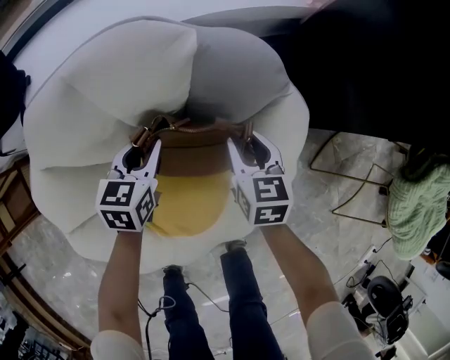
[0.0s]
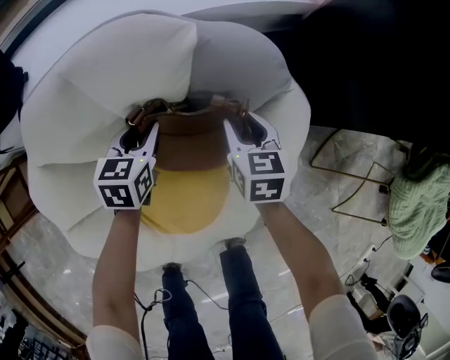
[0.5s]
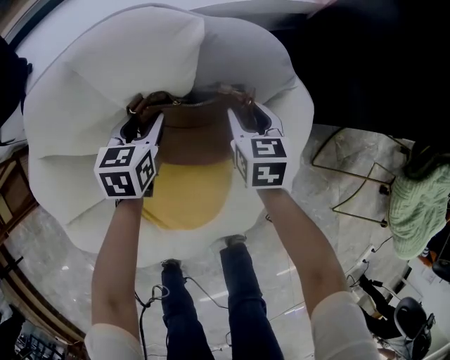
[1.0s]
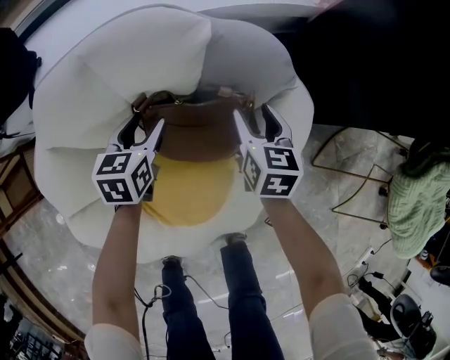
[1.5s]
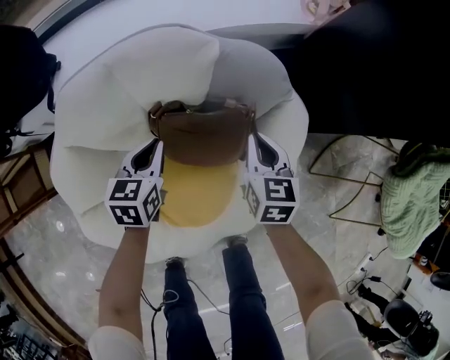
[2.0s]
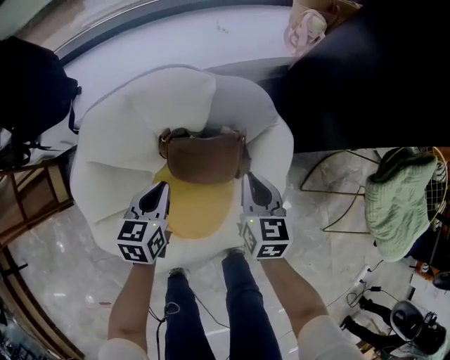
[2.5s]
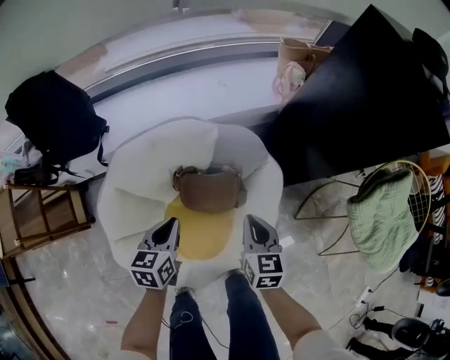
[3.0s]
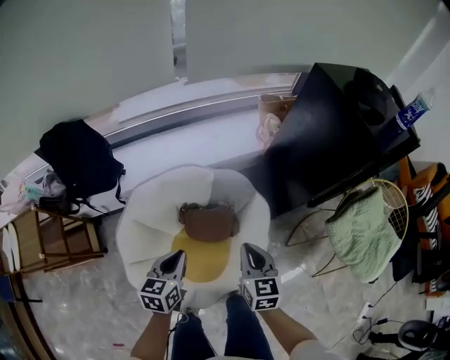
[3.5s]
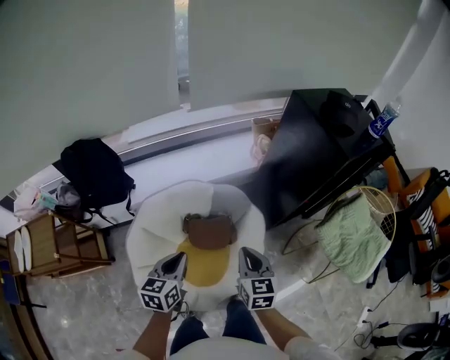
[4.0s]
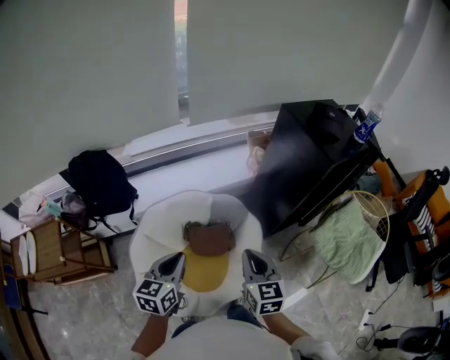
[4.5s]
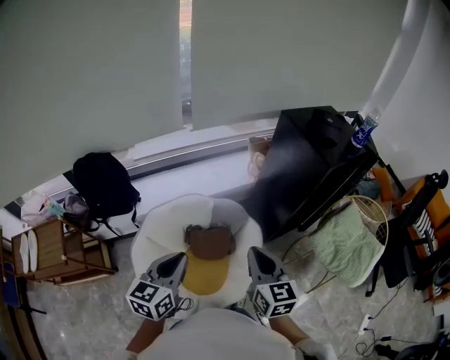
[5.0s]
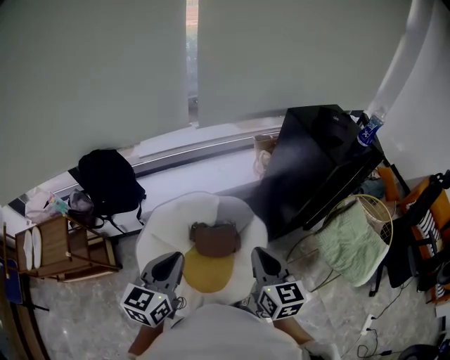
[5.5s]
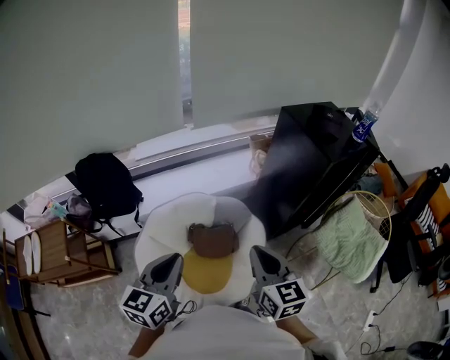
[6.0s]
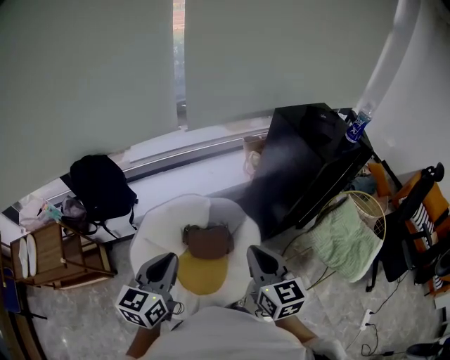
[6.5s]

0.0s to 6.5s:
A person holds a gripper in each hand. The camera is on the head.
0.0s to 2.0s: The right gripper moves upward, some 5 cm, and closes. The left gripper moves about 5 cm, and opens, then closes once more.
2.0s to 4.5s: The right gripper heads upward and backward, covering roughly 50 cm. The left gripper moves upward, some 50 cm.
4.5s to 6.5s: Both grippers travel together upward, about 10 cm.

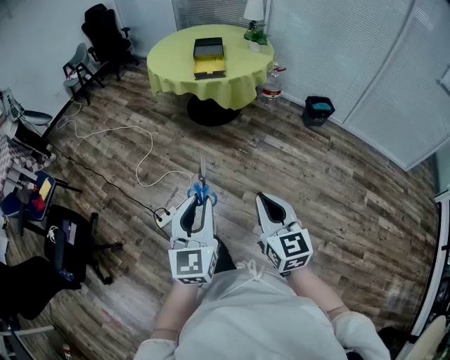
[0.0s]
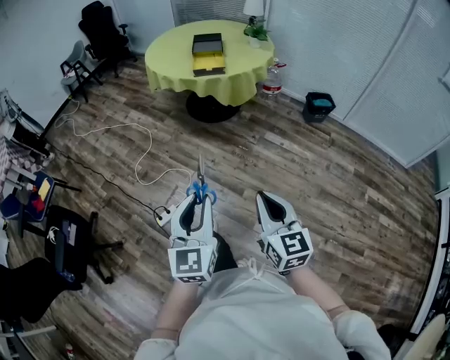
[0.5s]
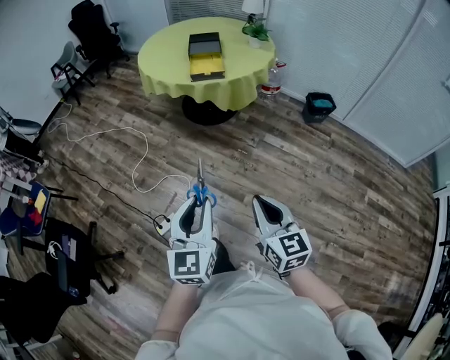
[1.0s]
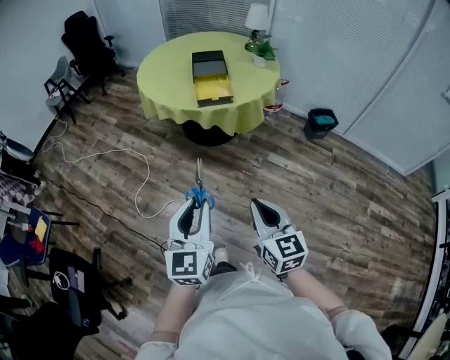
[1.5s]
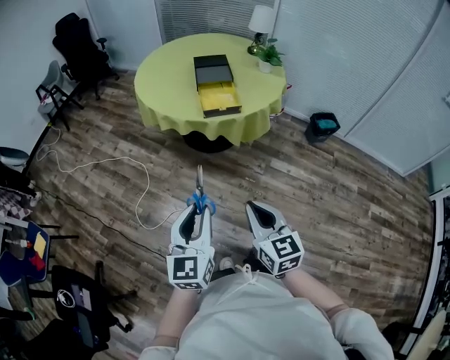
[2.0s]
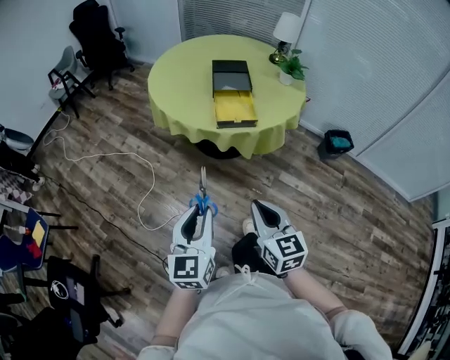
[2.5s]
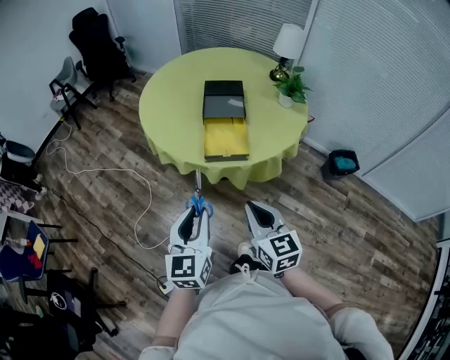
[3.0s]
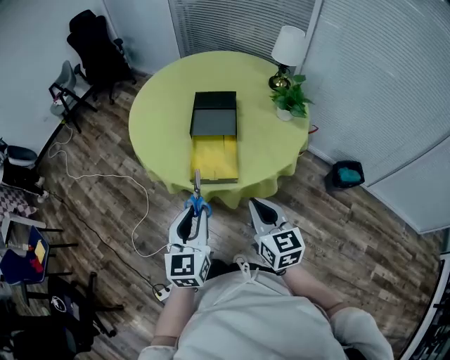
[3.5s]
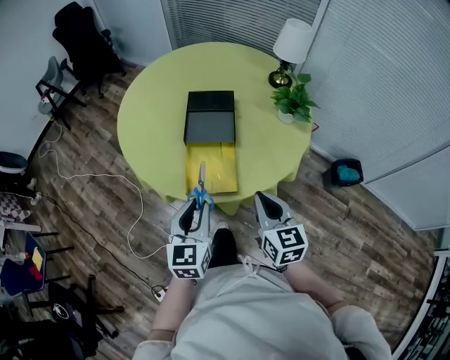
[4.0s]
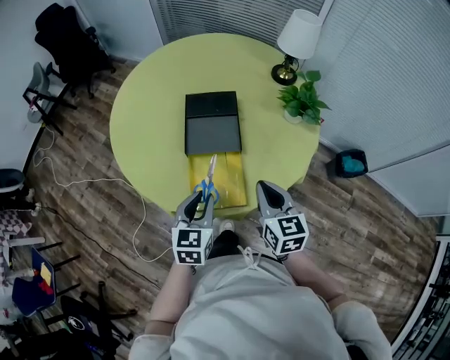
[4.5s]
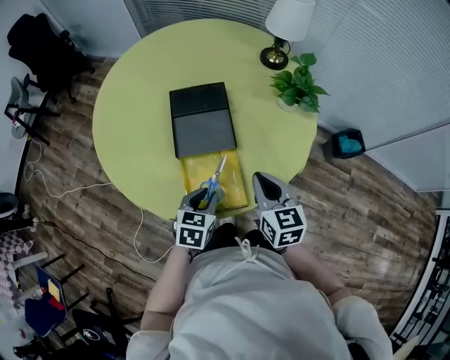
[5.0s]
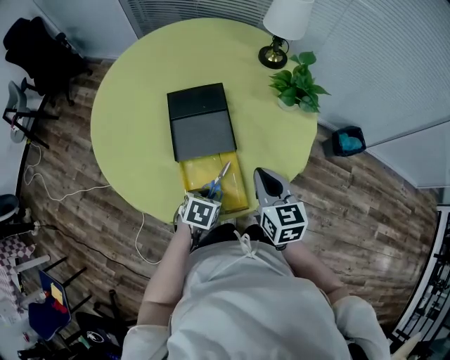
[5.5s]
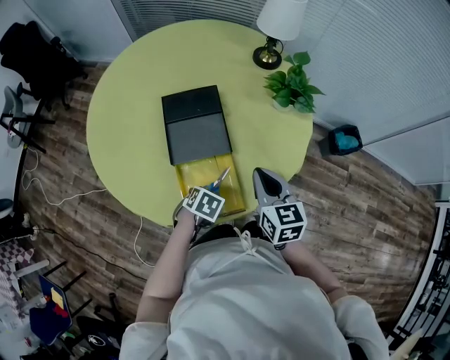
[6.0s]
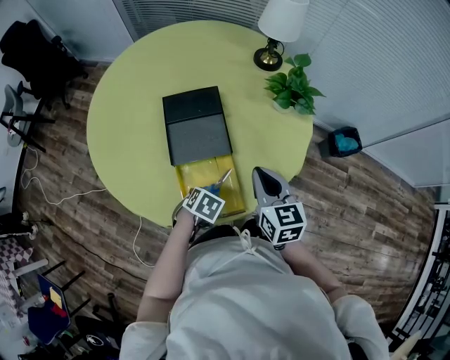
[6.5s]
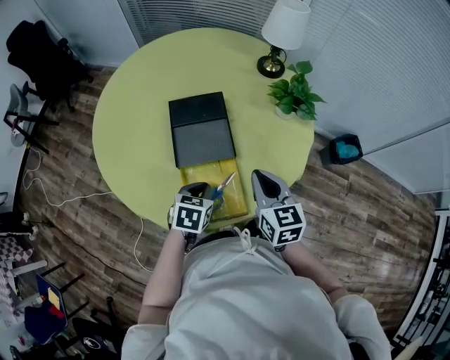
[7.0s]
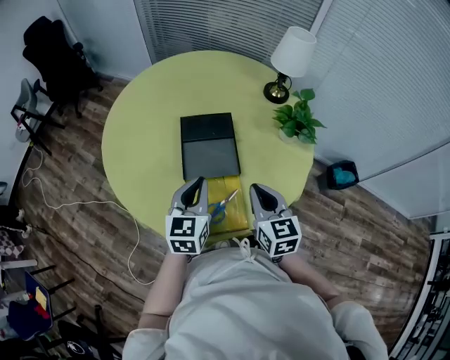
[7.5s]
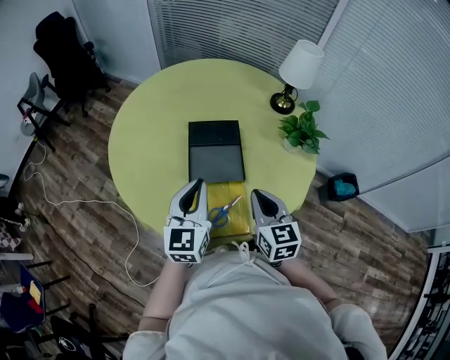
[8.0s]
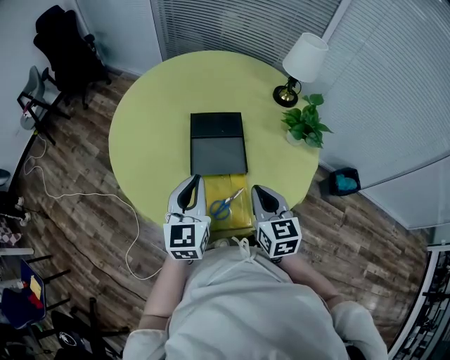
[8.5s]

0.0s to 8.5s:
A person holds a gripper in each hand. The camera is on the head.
0.0s to 2.0s: The right gripper is displaced forward and to the left by roughly 40 cm, while the left gripper shifts some 35 cm forward.
2.0s to 4.0s: The two grippers travel together, forward and to the right, about 50 cm.
4.0s to 6.5s: The left gripper is displaced downward by roughly 25 cm, and tips its fingers downward by approximately 60 degrees, while the right gripper ends up approximately 20 cm from where it was.
6.5s to 8.5s: The left gripper goes some 25 cm upward, and angles its fingers upward, by approximately 70 degrees, while the right gripper moves about 5 cm.

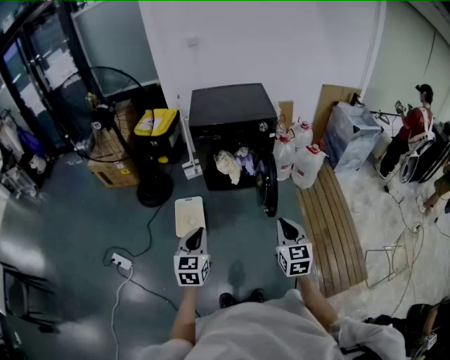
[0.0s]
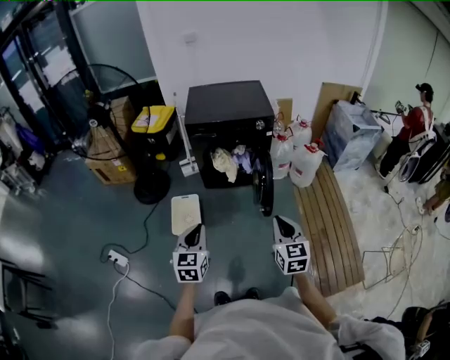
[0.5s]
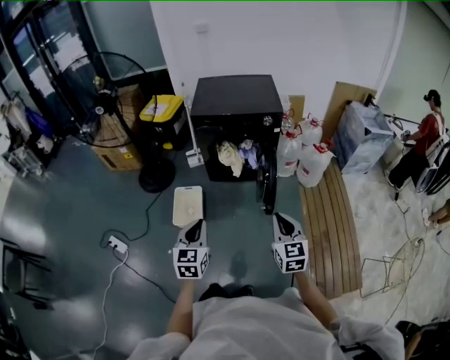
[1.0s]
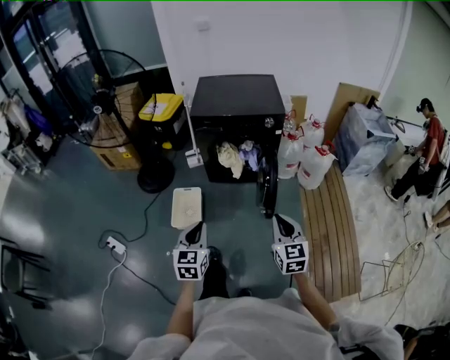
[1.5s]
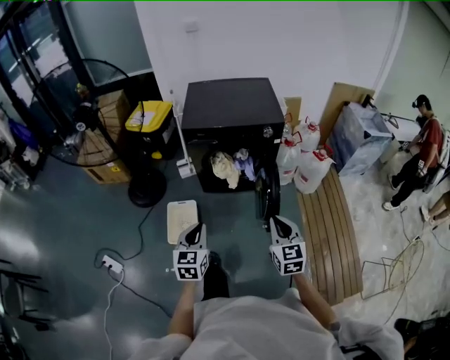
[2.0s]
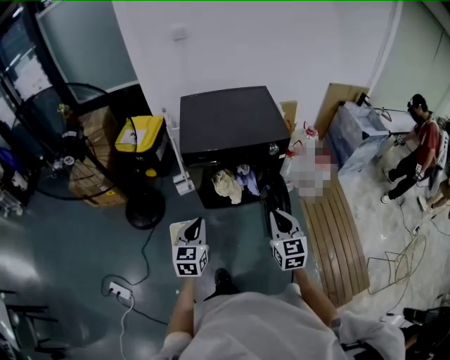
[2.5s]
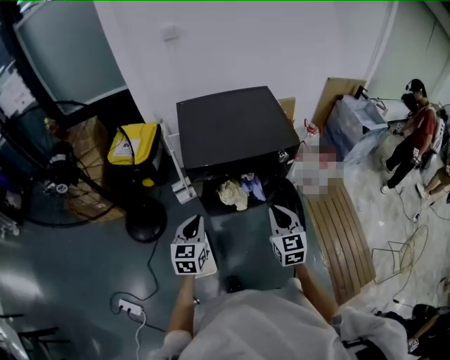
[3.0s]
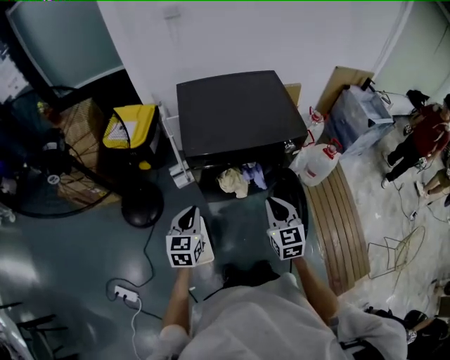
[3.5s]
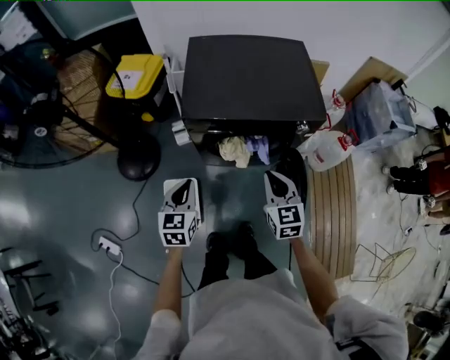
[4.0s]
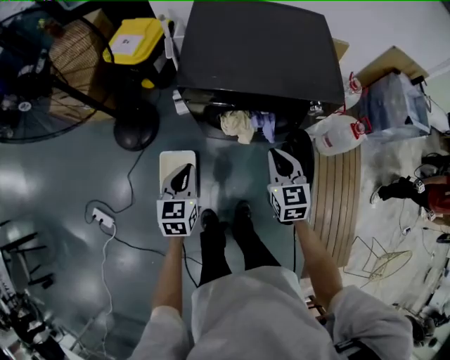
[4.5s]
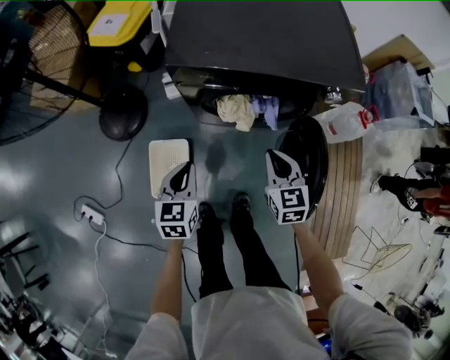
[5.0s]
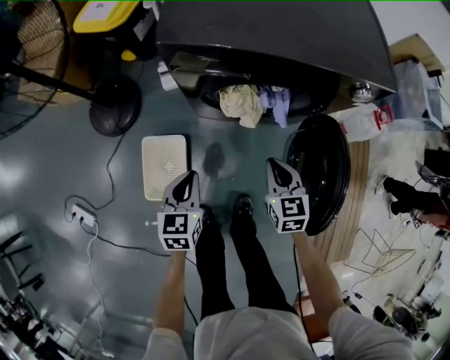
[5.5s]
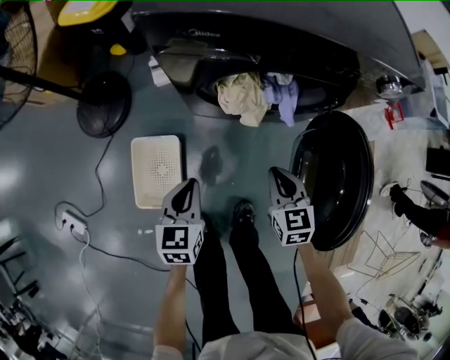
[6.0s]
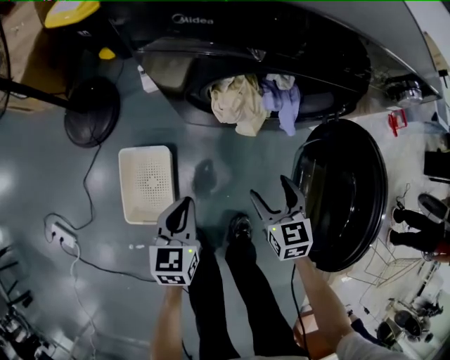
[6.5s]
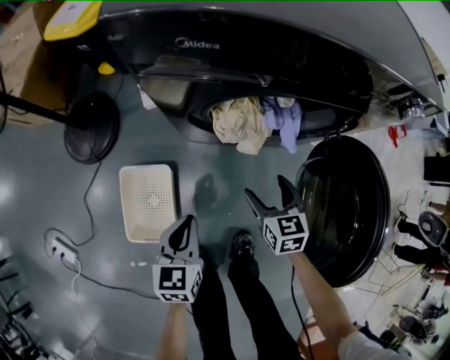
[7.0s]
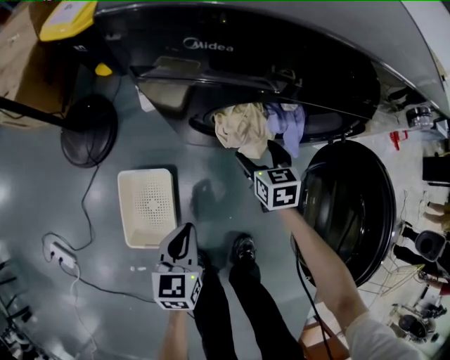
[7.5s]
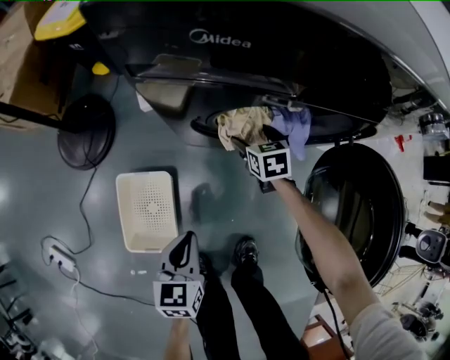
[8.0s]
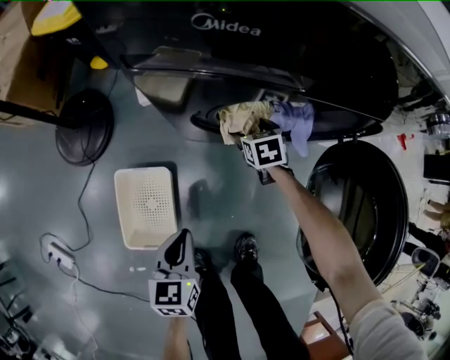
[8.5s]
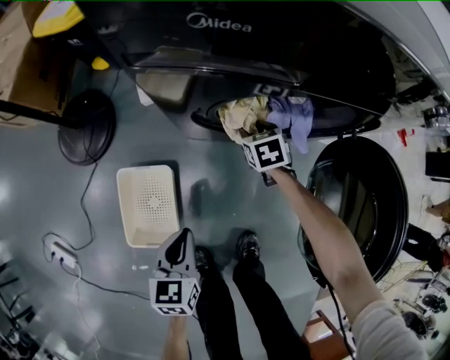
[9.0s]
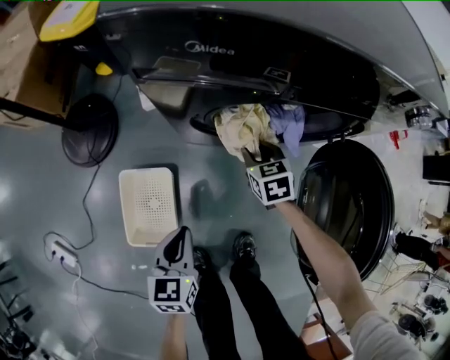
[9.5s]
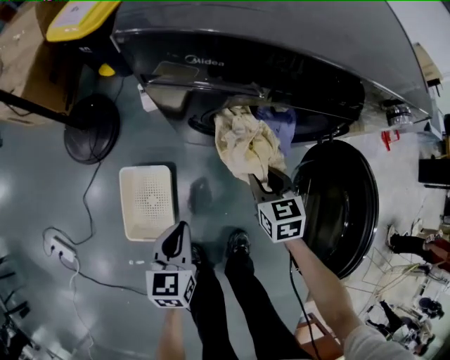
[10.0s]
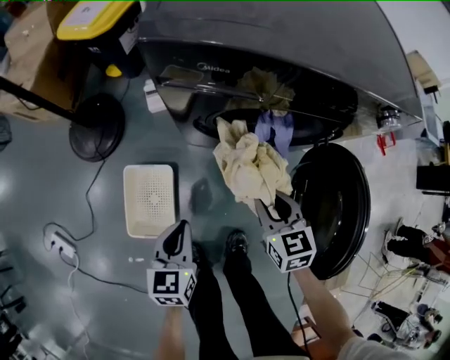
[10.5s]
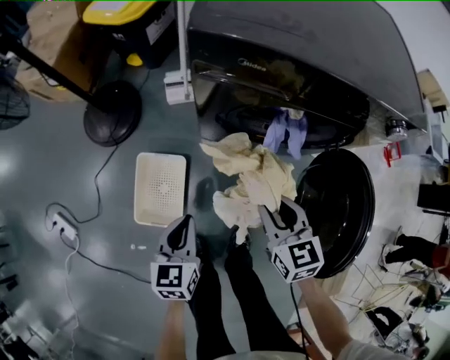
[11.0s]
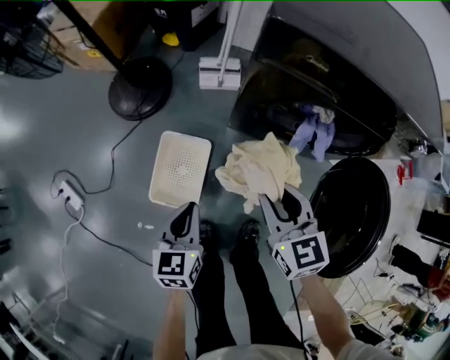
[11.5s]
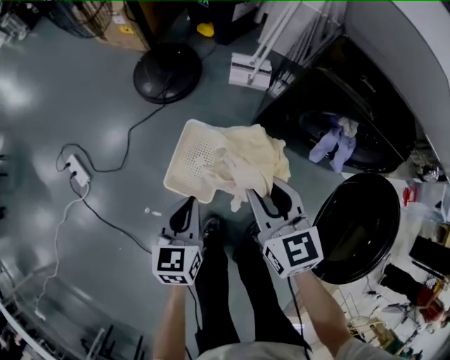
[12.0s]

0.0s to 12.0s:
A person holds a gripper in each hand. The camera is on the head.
0.0s to 2.0s: The two grippers go roughly 20 cm forward.
2.0s to 4.0s: The two grippers go about 35 cm forward.
4.0s to 6.0s: Both grippers move downward, approximately 35 cm.
6.0s to 8.0s: The right gripper goes about 30 cm forward and downward, and opens. Meanwhile the left gripper heads downward, covering approximately 10 cm.
8.0s to 10.0s: The right gripper heads upward and backward, covering some 20 cm, and closes. The left gripper travels upward by roughly 5 cm.
10.0s to 12.0s: The right gripper ends up some 35 cm from where it was, and changes its angle by approximately 30 degrees. The left gripper moves roughly 20 cm, and changes its angle by about 20 degrees.
